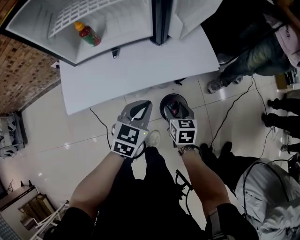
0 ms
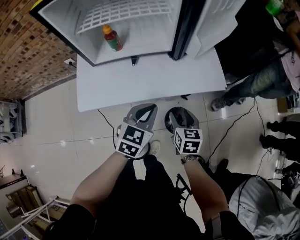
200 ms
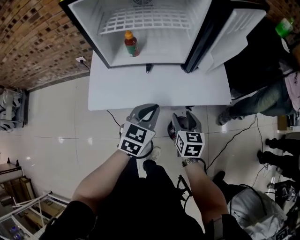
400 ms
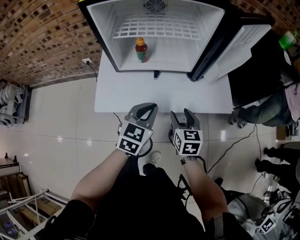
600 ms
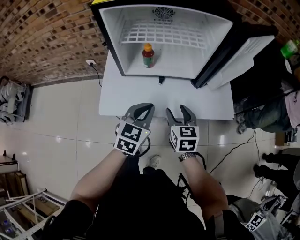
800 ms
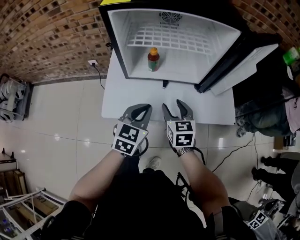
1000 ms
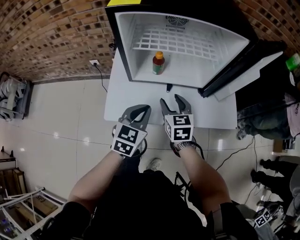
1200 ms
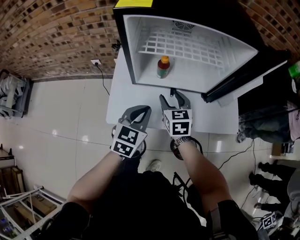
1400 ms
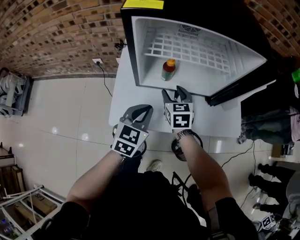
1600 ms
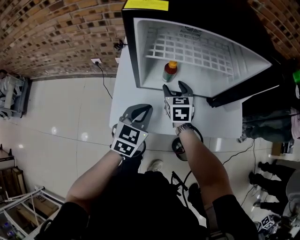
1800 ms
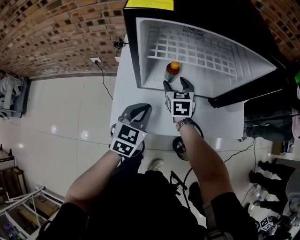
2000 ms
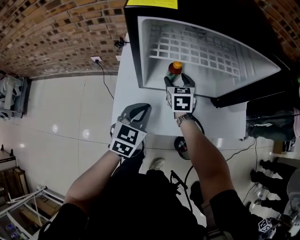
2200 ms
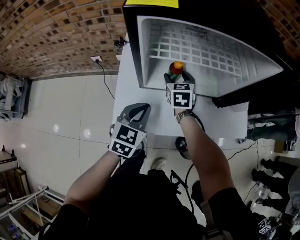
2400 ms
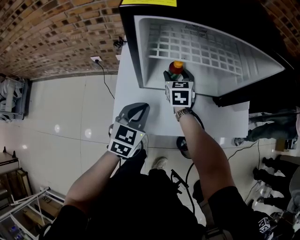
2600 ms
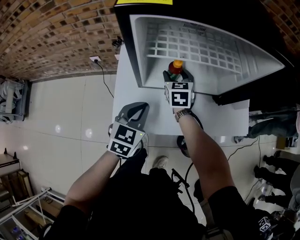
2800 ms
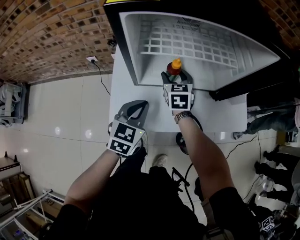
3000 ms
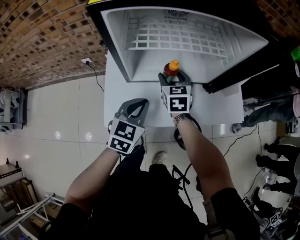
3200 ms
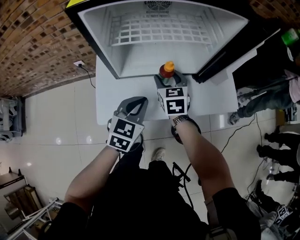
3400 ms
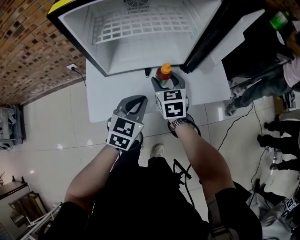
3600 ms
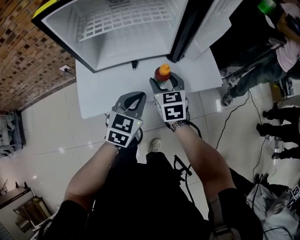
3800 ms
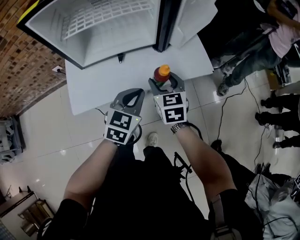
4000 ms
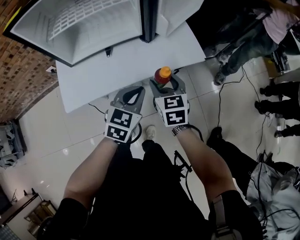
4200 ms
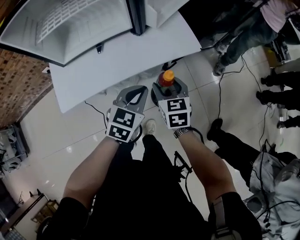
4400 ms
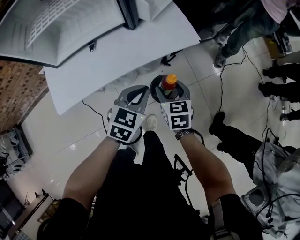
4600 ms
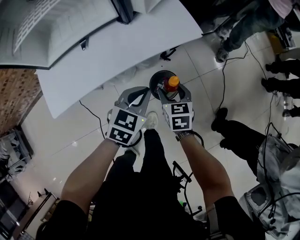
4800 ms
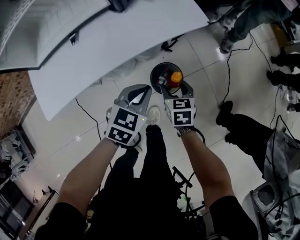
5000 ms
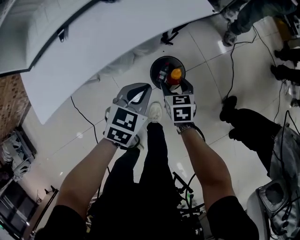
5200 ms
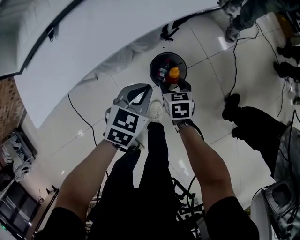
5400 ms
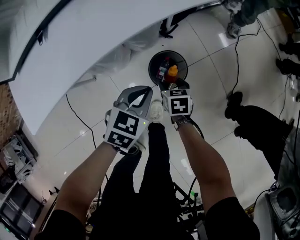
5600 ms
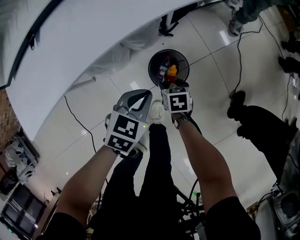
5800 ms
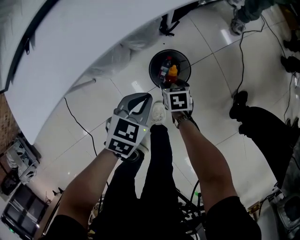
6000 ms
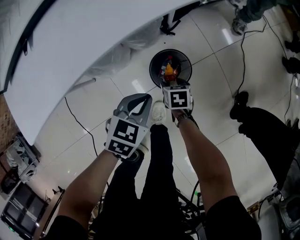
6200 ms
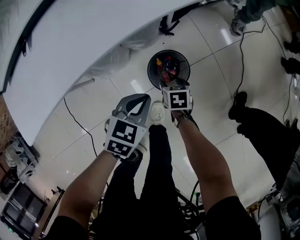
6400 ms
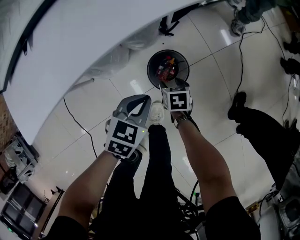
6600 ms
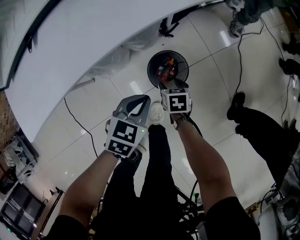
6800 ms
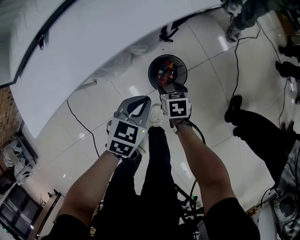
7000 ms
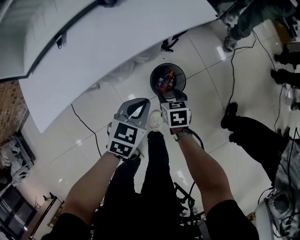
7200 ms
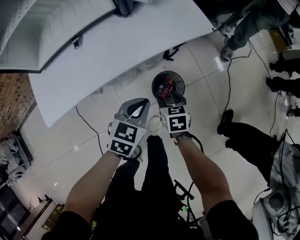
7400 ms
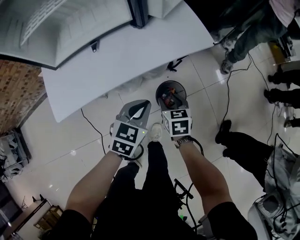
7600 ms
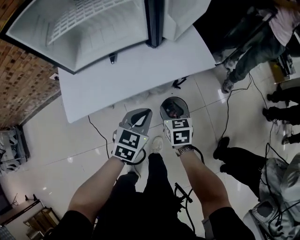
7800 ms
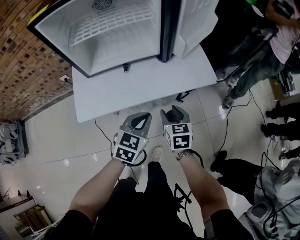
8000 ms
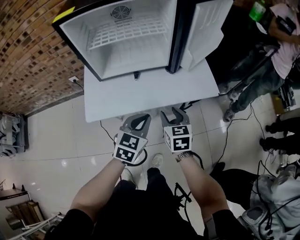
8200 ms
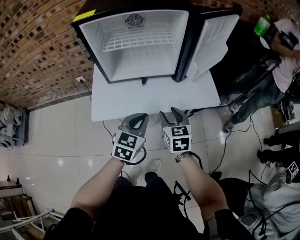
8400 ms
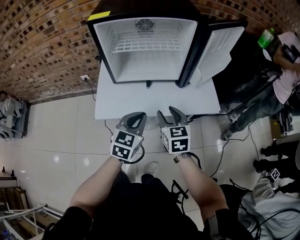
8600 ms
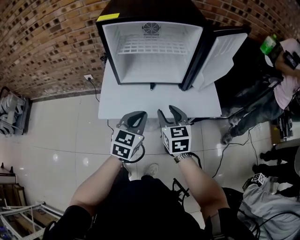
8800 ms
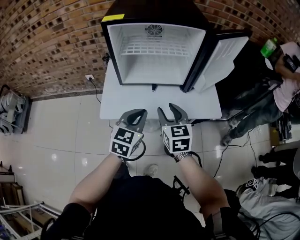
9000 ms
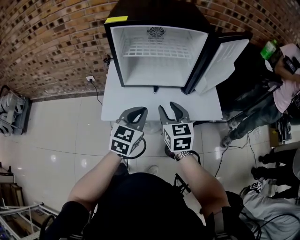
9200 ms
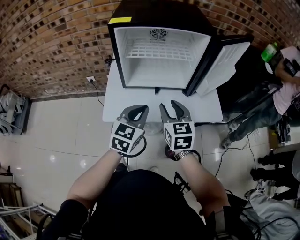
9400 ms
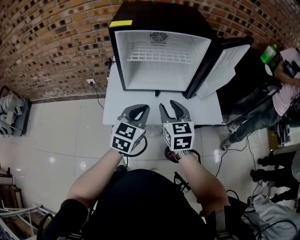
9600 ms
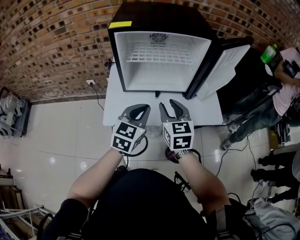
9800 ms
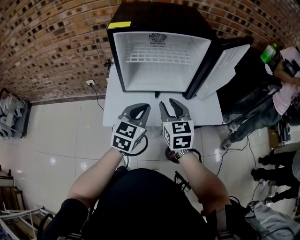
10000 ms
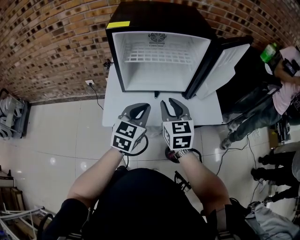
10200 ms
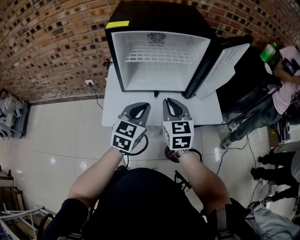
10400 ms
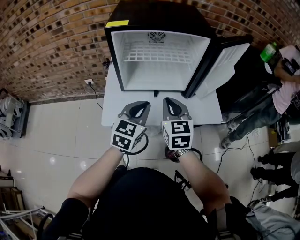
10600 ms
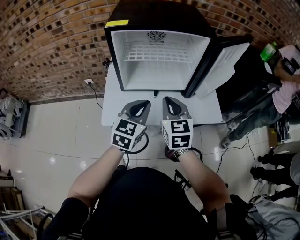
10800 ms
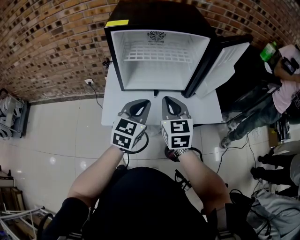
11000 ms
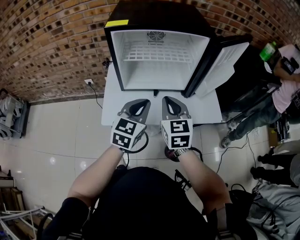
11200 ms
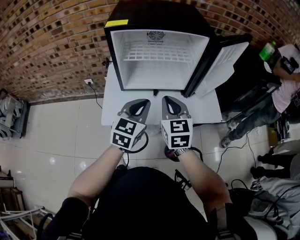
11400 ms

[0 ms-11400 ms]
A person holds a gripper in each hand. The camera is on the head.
0 ms to 1400 ms: The right gripper goes roughly 35 cm to the left, forward and upward, and rotates some 30 degrees; the left gripper shifts some 25 cm to the left and upward, and turns by about 20 degrees.
1400 ms to 2800 ms: The left gripper moves to the left, approximately 5 cm, while the right gripper moves forward, about 15 cm.
2800 ms to 4200 ms: The right gripper moves to the right and backward, some 40 cm. Meanwhile the left gripper goes approximately 30 cm to the right, and rotates roughly 20 degrees.
4200 ms to 5600 ms: Both grippers move downward, approximately 35 cm. The left gripper rotates some 20 degrees. Meanwhile the right gripper rotates roughly 40 degrees.
5600 ms to 7200 ms: The right gripper travels upward by some 5 cm.
7200 ms to 8600 ms: The grippers both shift upward and to the left by approximately 40 cm. The left gripper swivels some 40 degrees. Meanwhile the right gripper turns by some 40 degrees.
8600 ms to 10000 ms: The left gripper is displaced upward by approximately 5 cm; the right gripper travels upward and to the left by some 10 cm.
10000 ms to 11400 ms: The right gripper closes up.

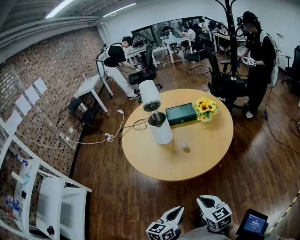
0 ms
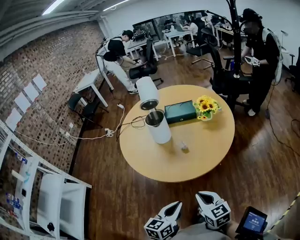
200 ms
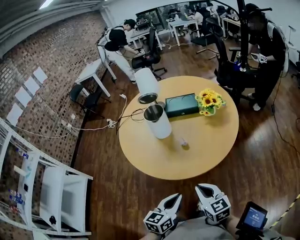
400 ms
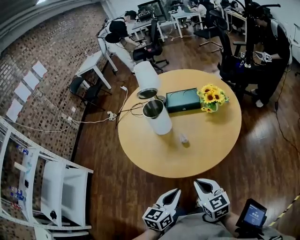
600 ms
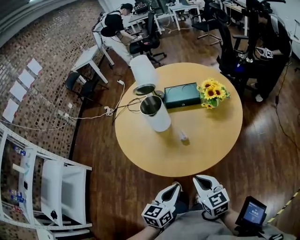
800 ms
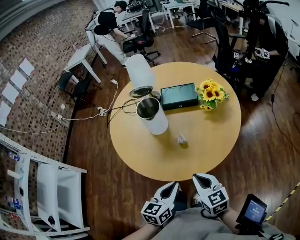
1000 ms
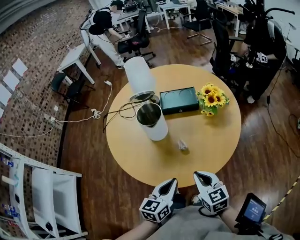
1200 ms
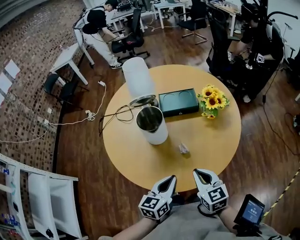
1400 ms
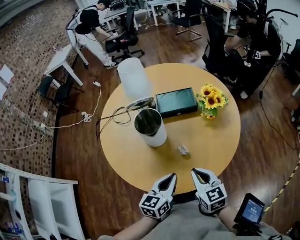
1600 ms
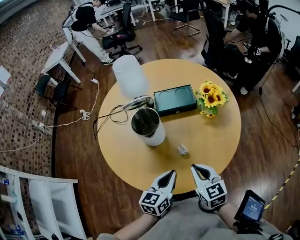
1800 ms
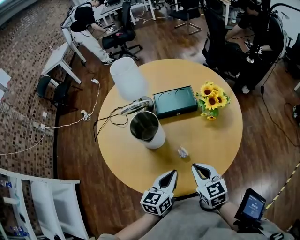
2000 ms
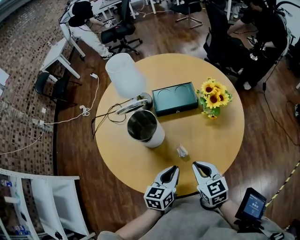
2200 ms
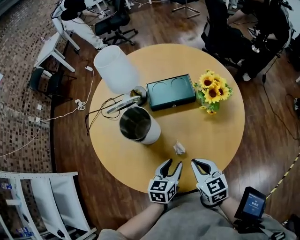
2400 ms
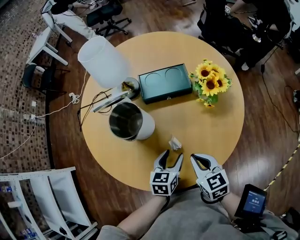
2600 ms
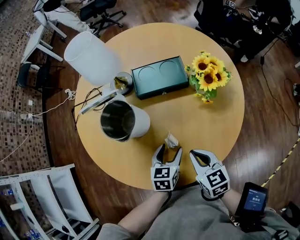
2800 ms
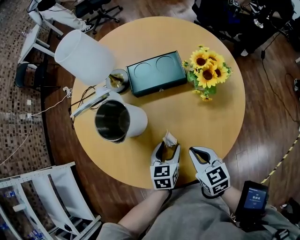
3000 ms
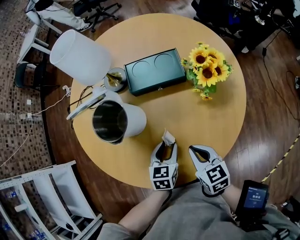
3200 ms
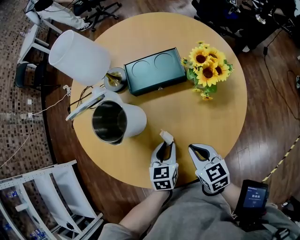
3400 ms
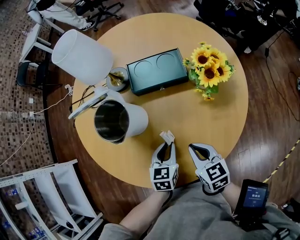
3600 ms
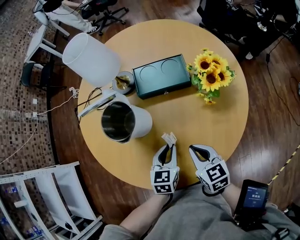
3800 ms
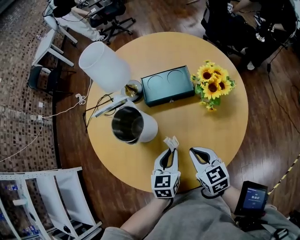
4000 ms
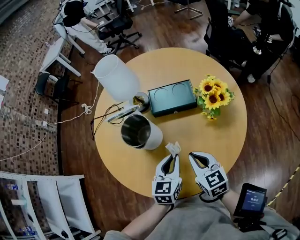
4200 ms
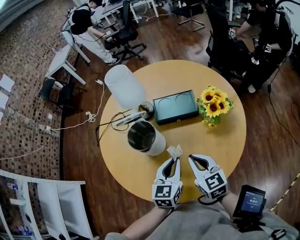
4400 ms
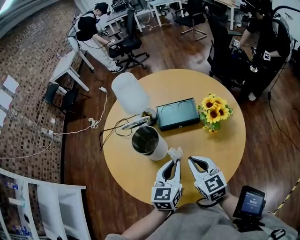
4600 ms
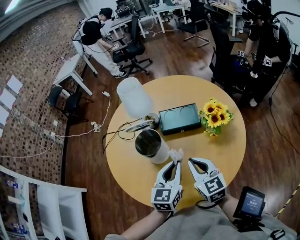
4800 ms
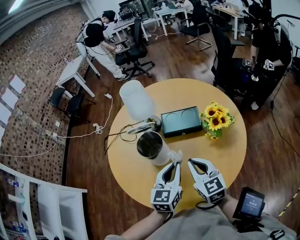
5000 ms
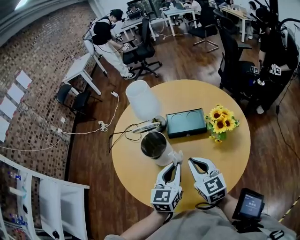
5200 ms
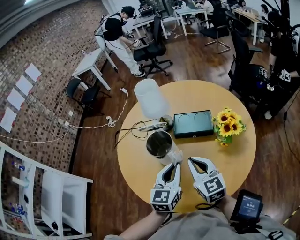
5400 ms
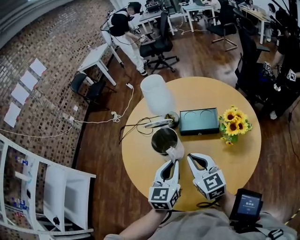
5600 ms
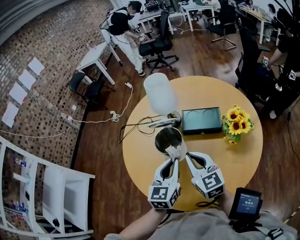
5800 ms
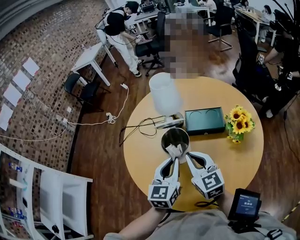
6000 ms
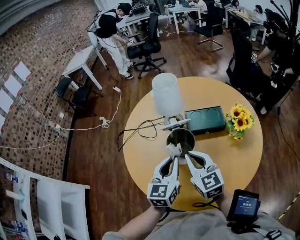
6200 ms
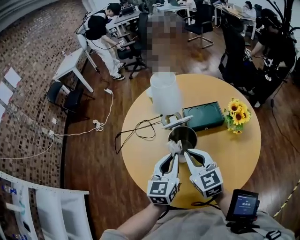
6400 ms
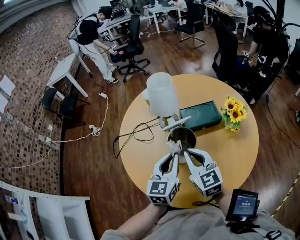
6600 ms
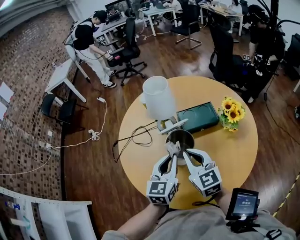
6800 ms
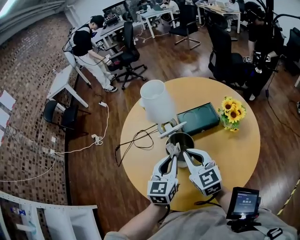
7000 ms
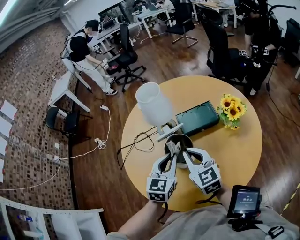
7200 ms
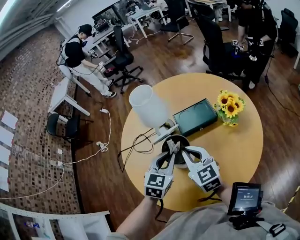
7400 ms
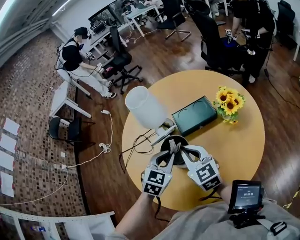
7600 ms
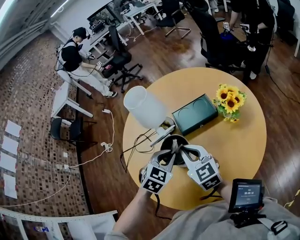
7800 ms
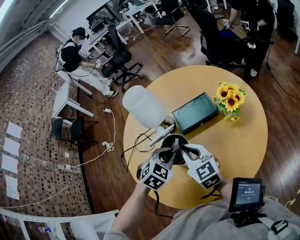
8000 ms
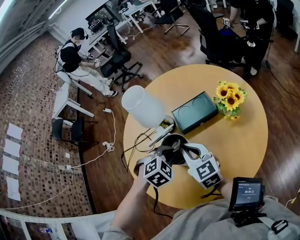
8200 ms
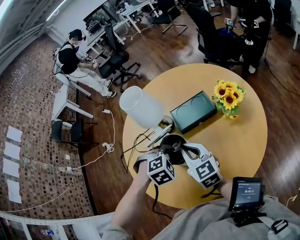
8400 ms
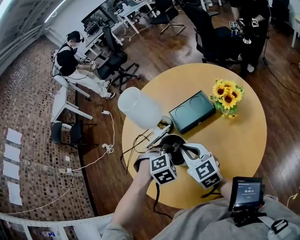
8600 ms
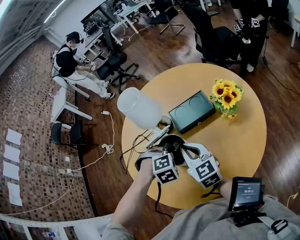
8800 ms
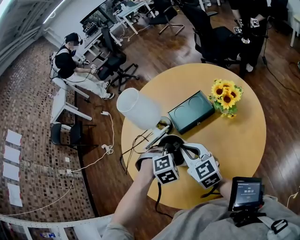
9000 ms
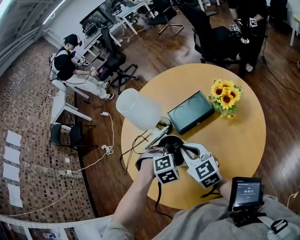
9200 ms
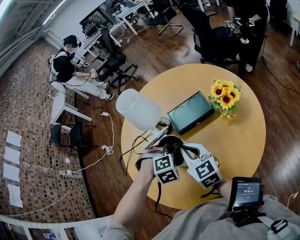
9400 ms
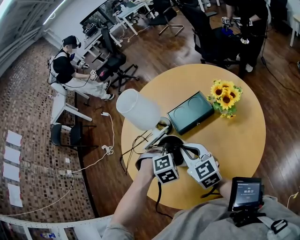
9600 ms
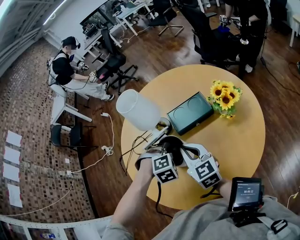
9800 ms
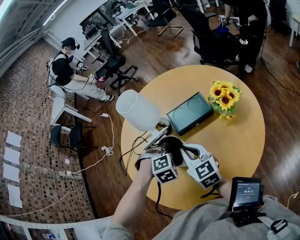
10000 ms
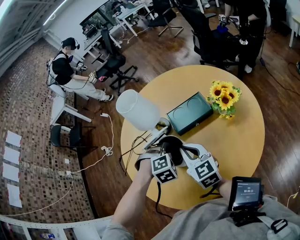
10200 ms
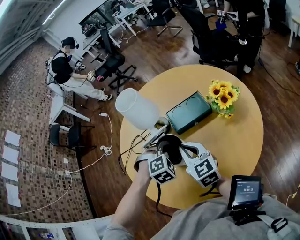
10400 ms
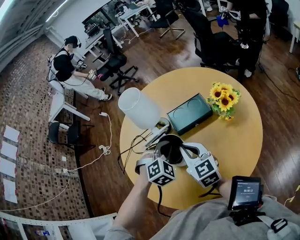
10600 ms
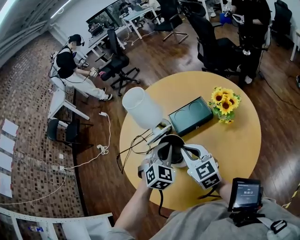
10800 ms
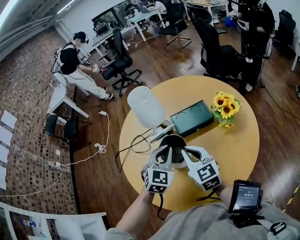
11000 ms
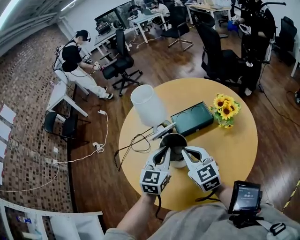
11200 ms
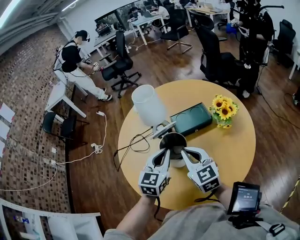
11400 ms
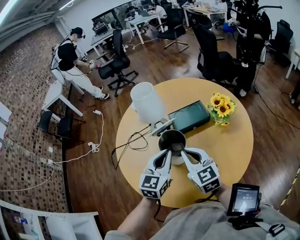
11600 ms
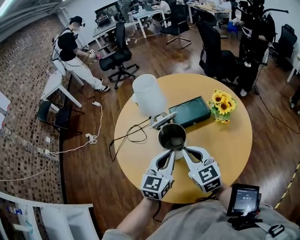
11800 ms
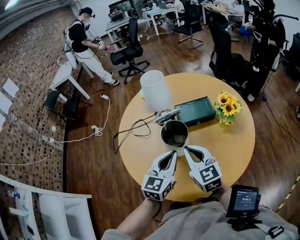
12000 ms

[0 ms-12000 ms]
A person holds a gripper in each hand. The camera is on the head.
0 ms to 1600 ms: The grippers both shift forward by about 35 cm.
1600 ms to 3000 ms: The right gripper shifts approximately 15 cm downward, forward and to the right. The left gripper shifts about 20 cm downward and forward, changes its angle by roughly 30 degrees, and opens up.
3000 ms to 4400 ms: The left gripper heads upward, covering about 15 cm, rotates about 20 degrees, and closes up. The right gripper moves upward, roughly 10 cm.
4400 ms to 6000 ms: The left gripper goes about 15 cm to the left and upward. Meanwhile the right gripper is displaced to the left, upward and forward by about 15 cm.
6000 ms to 7600 ms: Both grippers move forward, about 5 cm. The left gripper turns by roughly 50 degrees.
7600 ms to 9000 ms: The left gripper heads downward, covering some 5 cm, and rolls clockwise, seen from behind, by approximately 50 degrees.
9000 ms to 10400 ms: The grippers make only small movements.
10400 ms to 12000 ms: The right gripper shifts roughly 10 cm backward. The left gripper is displaced backward and upward by some 15 cm, and tilts its fingers roughly 50 degrees upward.
